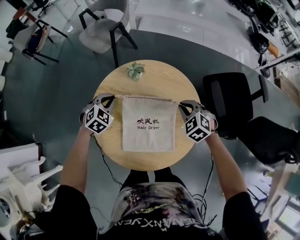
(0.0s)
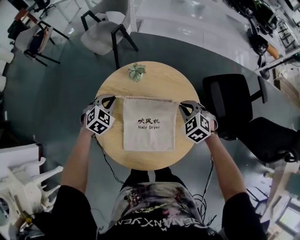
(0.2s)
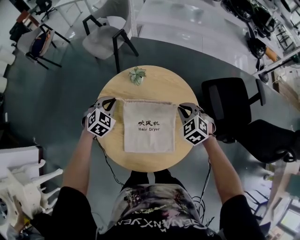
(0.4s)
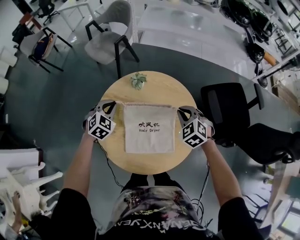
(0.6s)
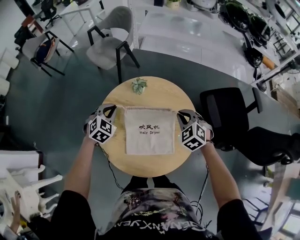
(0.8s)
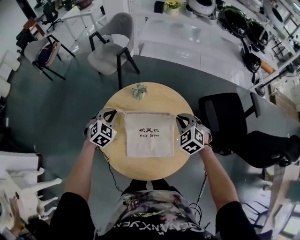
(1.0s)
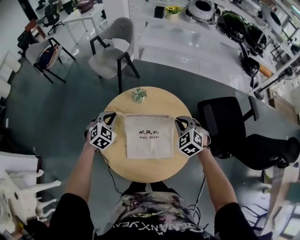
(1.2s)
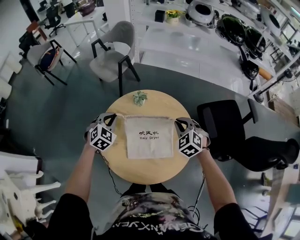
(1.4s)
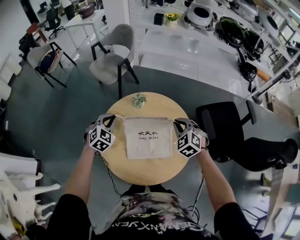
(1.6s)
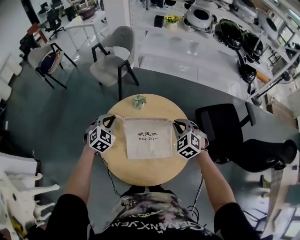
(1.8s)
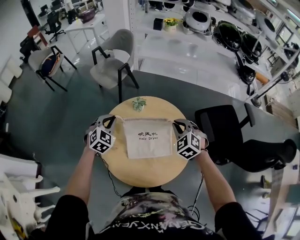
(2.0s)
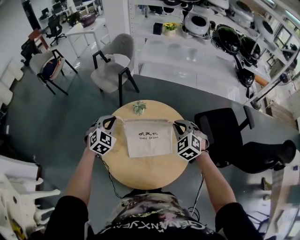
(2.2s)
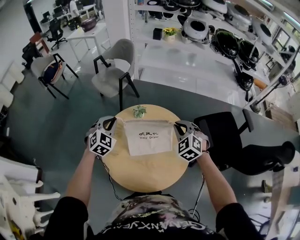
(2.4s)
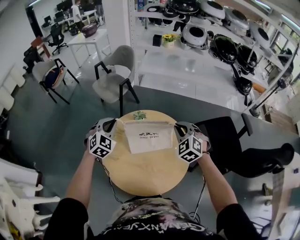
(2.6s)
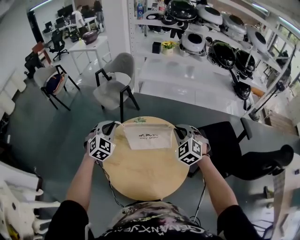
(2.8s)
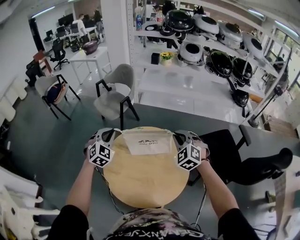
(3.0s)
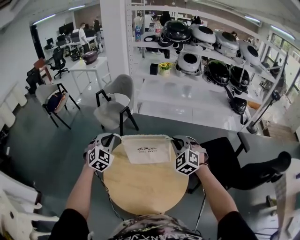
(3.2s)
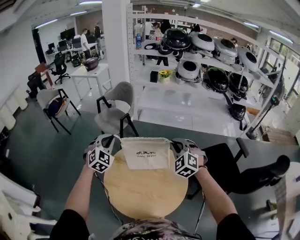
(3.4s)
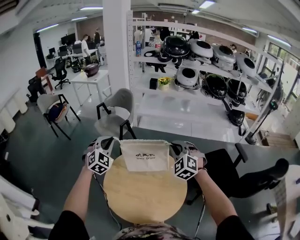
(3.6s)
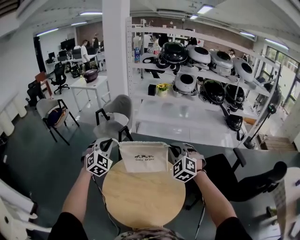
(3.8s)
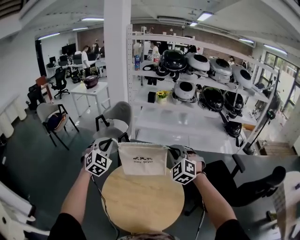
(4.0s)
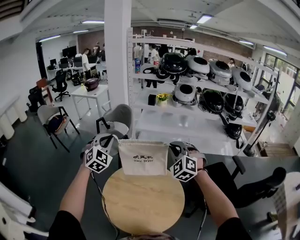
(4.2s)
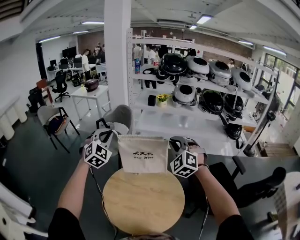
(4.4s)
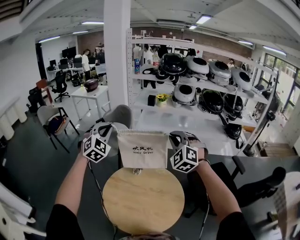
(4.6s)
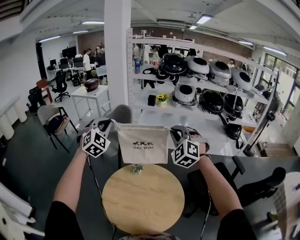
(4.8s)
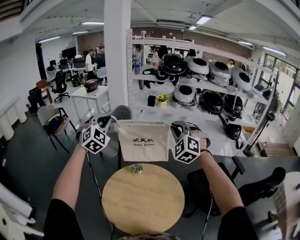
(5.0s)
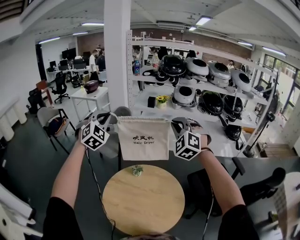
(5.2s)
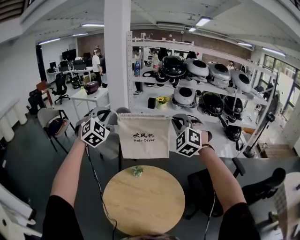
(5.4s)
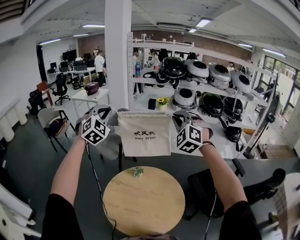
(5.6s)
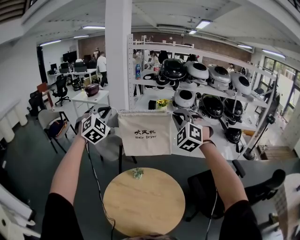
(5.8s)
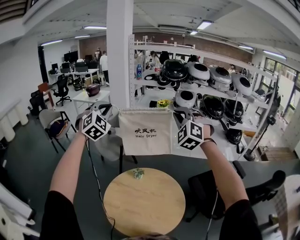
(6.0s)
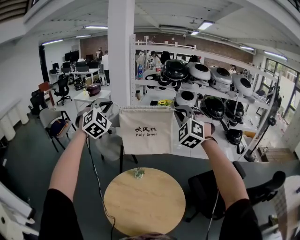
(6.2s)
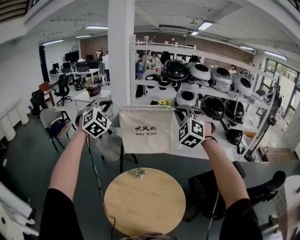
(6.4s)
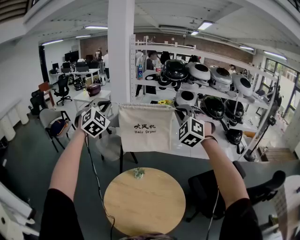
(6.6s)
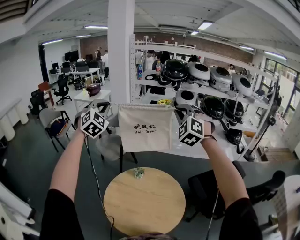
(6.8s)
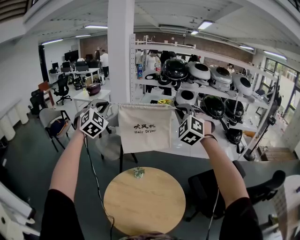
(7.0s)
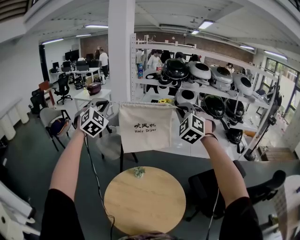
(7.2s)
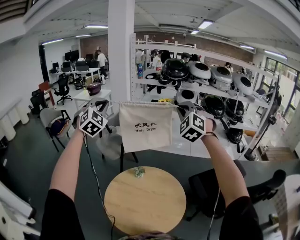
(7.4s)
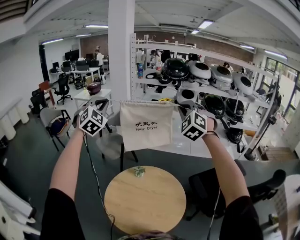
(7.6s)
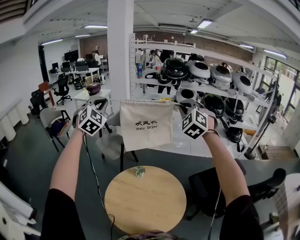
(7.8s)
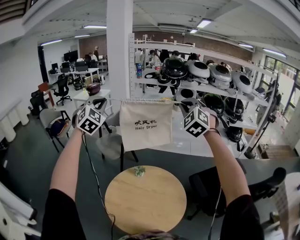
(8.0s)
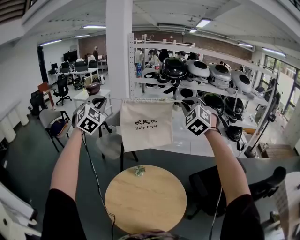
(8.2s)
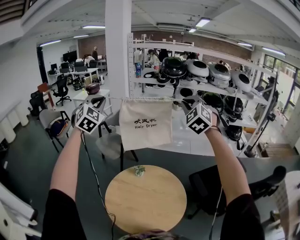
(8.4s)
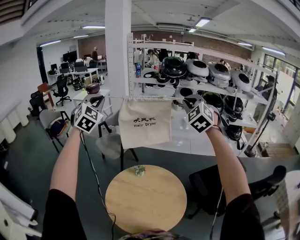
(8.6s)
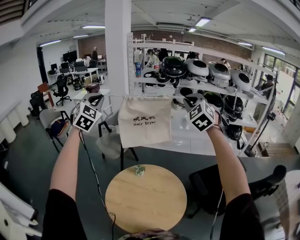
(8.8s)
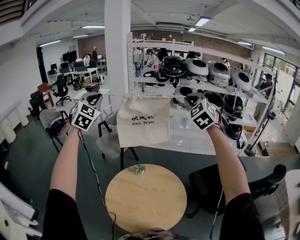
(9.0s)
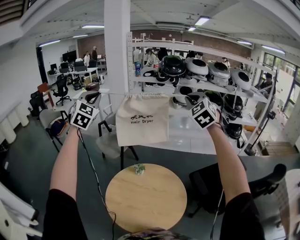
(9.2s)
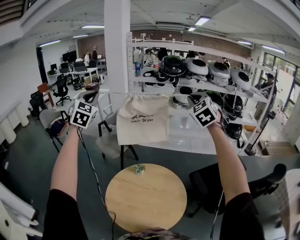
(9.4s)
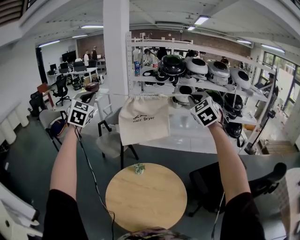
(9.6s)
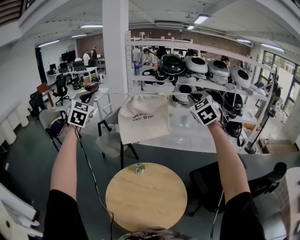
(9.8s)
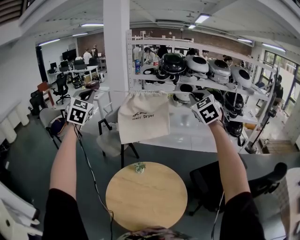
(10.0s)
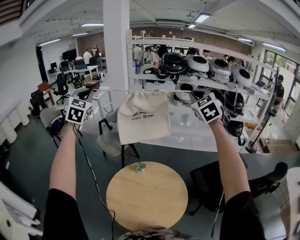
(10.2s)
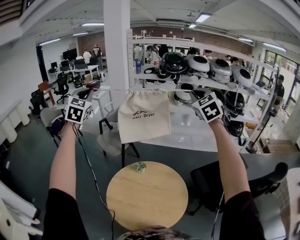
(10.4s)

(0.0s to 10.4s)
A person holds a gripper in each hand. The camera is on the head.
0.0s - 1.4s: The grippers both shift upward by roughly 10 cm.
1.4s - 3.0s: The two grippers go about 15 cm upward.
3.0s - 4.4s: Both grippers move upward, some 20 cm.
4.4s - 6.0s: Both grippers travel together upward, approximately 15 cm.
6.0s - 7.4s: The grippers stay close to where they were, moving slightly.
7.4s - 9.0s: The right gripper shifts by approximately 5 cm.
9.0s - 10.4s: The grippers make only small movements.

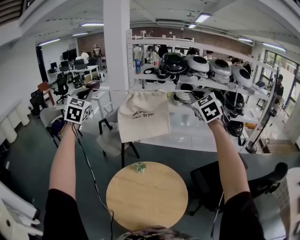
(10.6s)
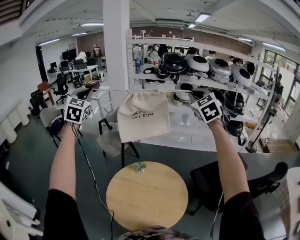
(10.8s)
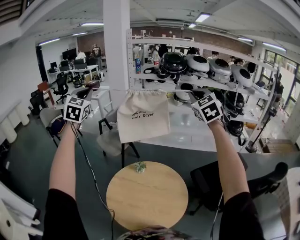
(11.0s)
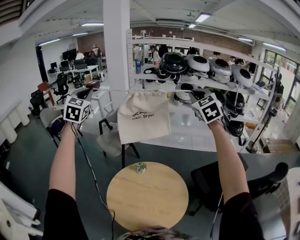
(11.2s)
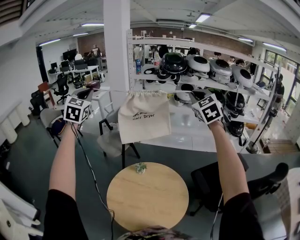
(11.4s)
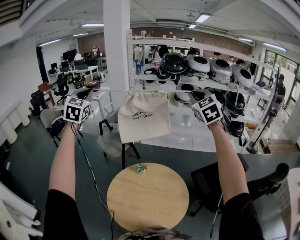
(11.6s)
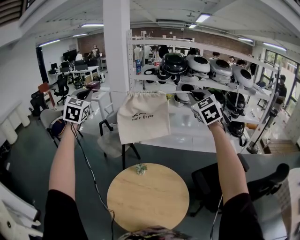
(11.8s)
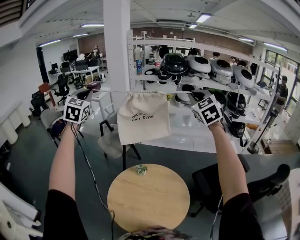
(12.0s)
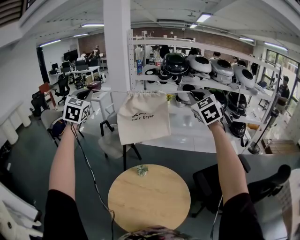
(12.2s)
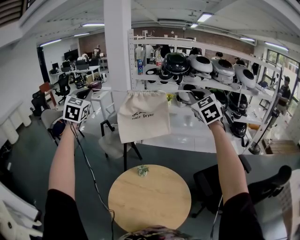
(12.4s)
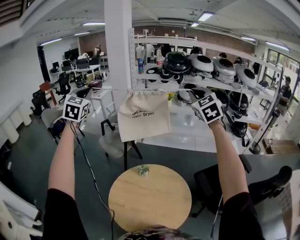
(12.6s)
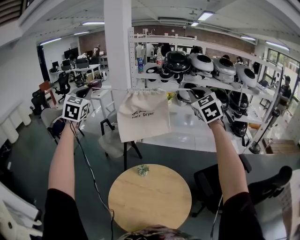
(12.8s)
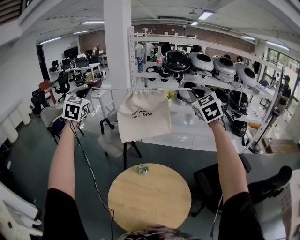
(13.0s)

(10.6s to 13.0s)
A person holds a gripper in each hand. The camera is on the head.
10.6s - 11.8s: Both grippers stay about where they are.
11.8s - 13.0s: The grippers make only small movements.

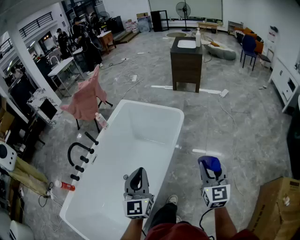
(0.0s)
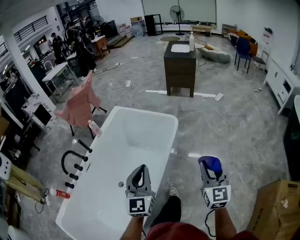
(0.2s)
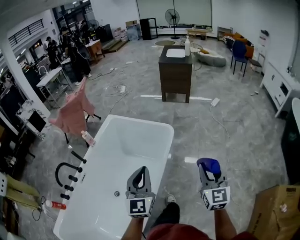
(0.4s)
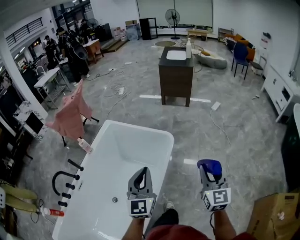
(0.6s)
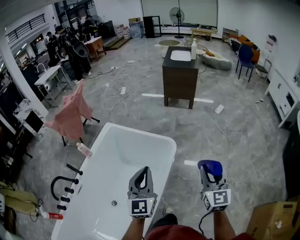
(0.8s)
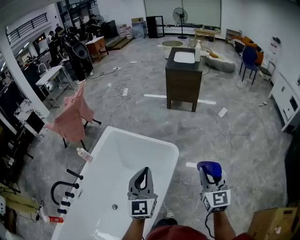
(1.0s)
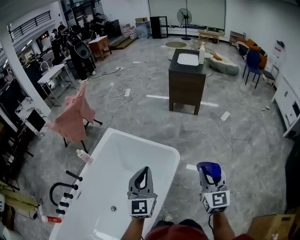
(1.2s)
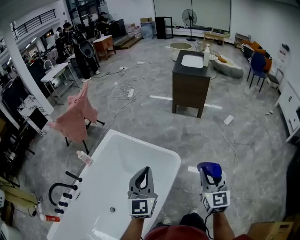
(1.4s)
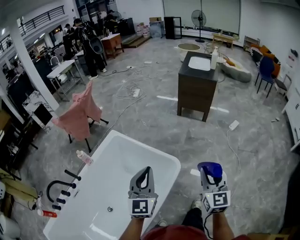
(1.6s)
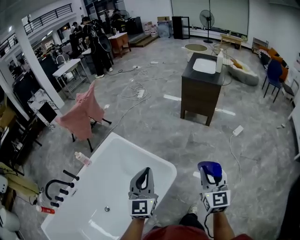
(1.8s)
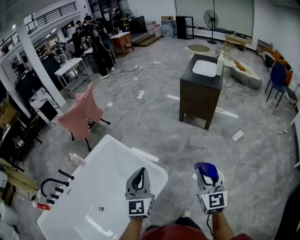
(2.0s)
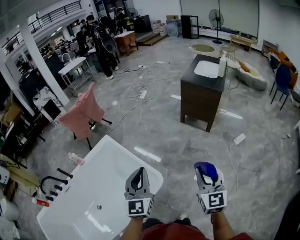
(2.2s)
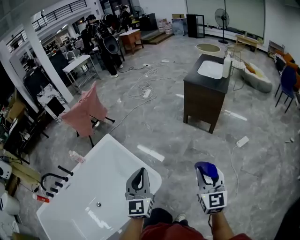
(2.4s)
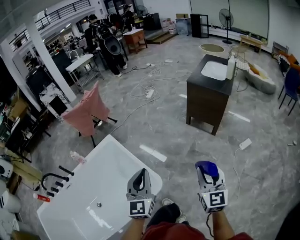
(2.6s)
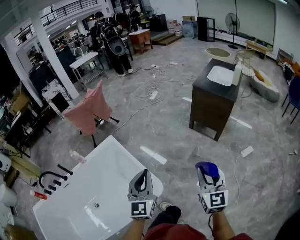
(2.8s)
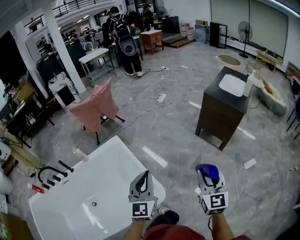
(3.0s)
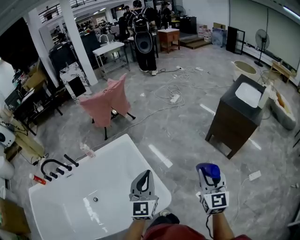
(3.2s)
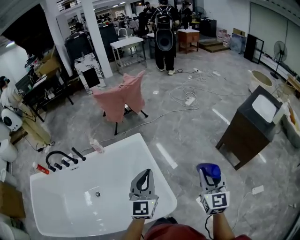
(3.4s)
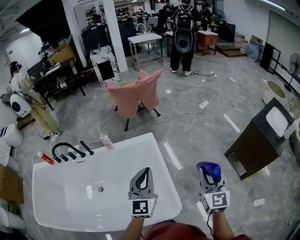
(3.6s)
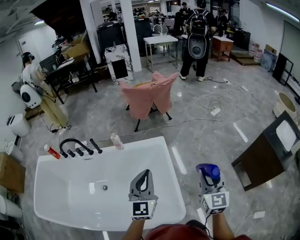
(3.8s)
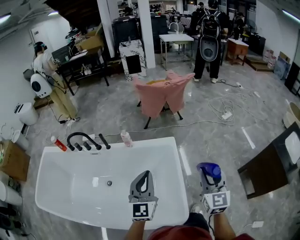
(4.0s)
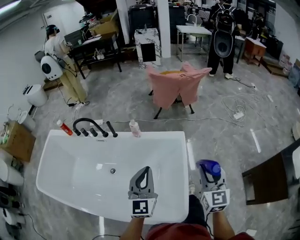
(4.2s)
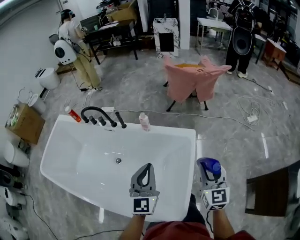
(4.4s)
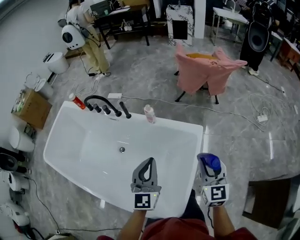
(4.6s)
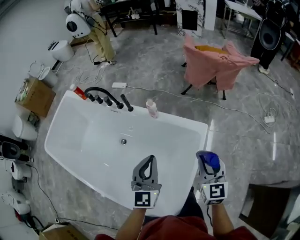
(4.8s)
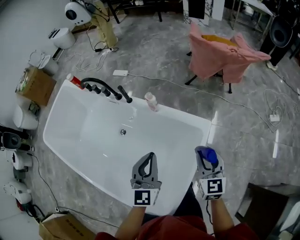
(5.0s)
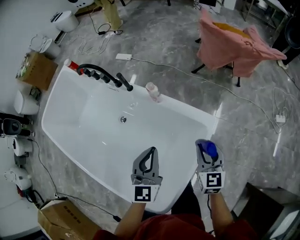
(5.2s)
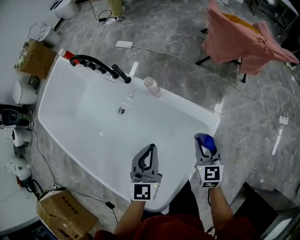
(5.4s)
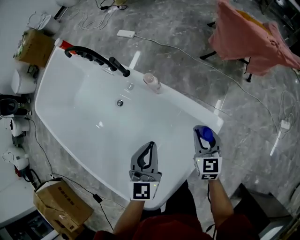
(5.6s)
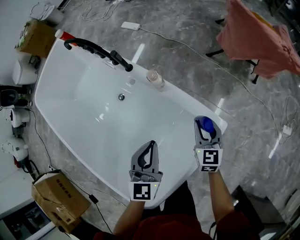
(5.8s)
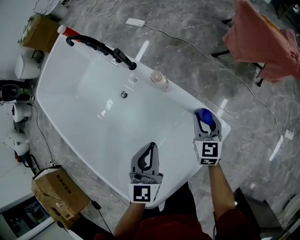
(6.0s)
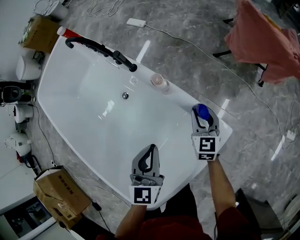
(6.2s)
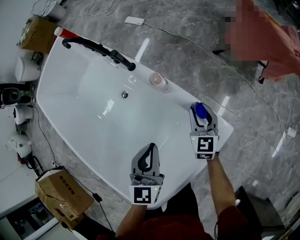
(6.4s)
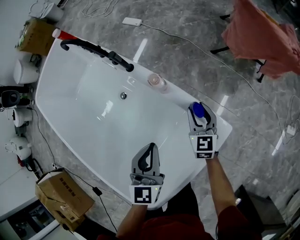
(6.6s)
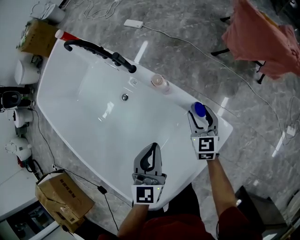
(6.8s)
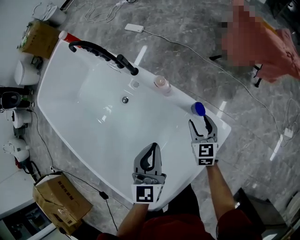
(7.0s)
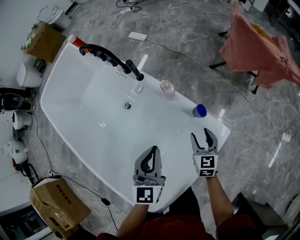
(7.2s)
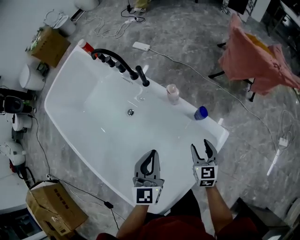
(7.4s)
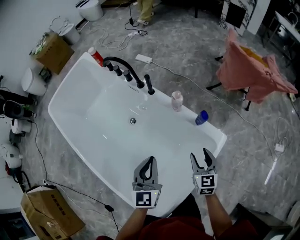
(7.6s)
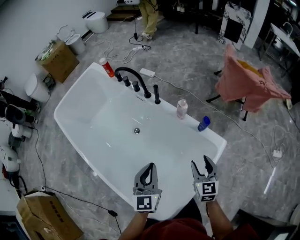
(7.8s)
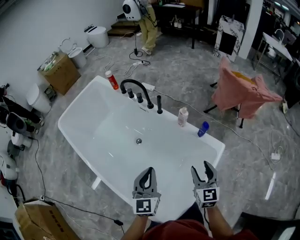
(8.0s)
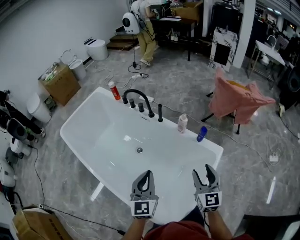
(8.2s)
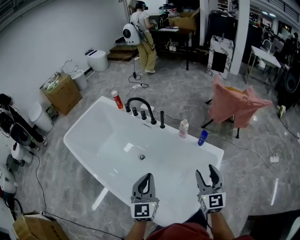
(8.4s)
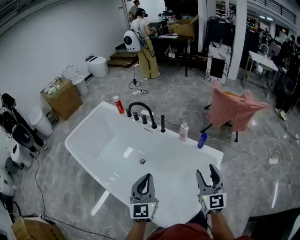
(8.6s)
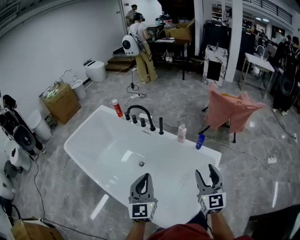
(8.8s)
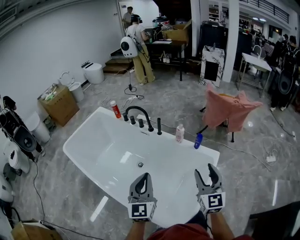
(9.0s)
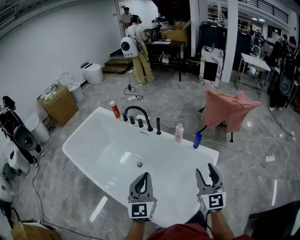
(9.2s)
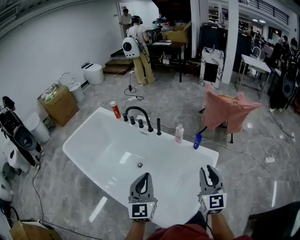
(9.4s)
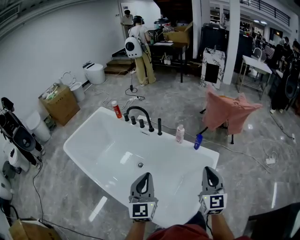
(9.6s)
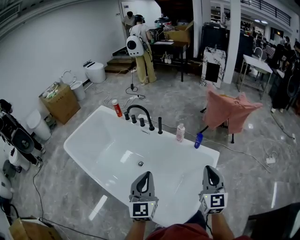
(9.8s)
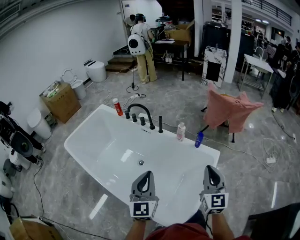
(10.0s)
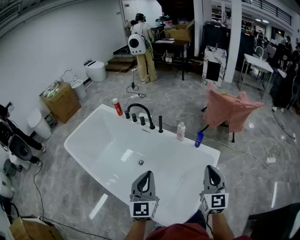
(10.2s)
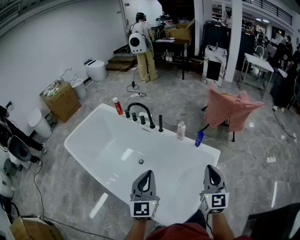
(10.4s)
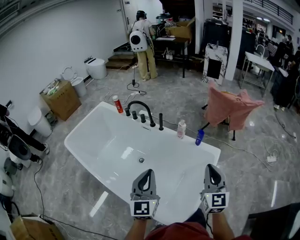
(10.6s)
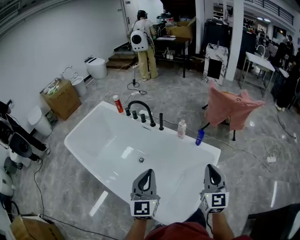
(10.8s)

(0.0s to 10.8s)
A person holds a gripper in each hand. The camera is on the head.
0.0s - 1.6s: The two grippers travel together, forward, approximately 50 cm.
1.6s - 3.0s: The two grippers go approximately 25 cm forward and to the right. The right gripper rotates roughly 20 degrees. The left gripper turns by about 20 degrees.
3.0s - 4.6s: The left gripper ends up some 40 cm from where it was, and turns by roughly 50 degrees. The right gripper shifts by about 60 cm, and changes its angle by about 60 degrees.
4.6s - 6.2s: The right gripper heads forward and downward, covering approximately 50 cm, and swivels roughly 30 degrees, while the left gripper shifts some 25 cm downward and forward, and changes its angle by roughly 30 degrees.
6.2s - 7.8s: The left gripper moves to the left, upward and backward, approximately 25 cm. Meanwhile the right gripper shifts roughly 30 cm backward, upward and to the left.
7.8s - 9.2s: The right gripper goes roughly 30 cm upward and backward, and rotates approximately 30 degrees, while the left gripper moves upward, backward and to the left, roughly 25 cm.
9.2s - 10.8s: The right gripper closes up.
